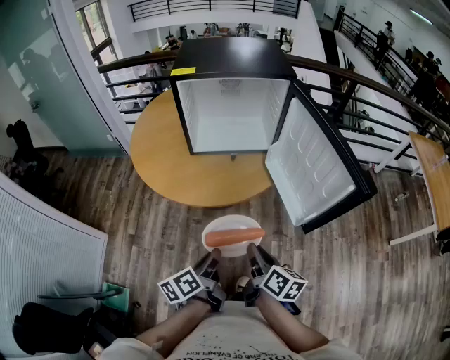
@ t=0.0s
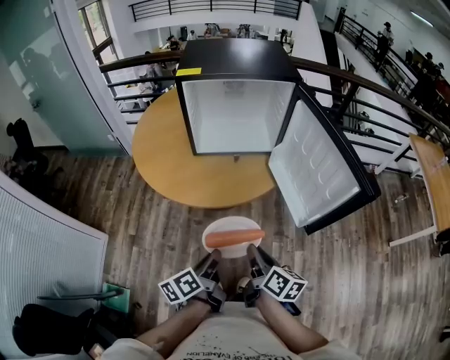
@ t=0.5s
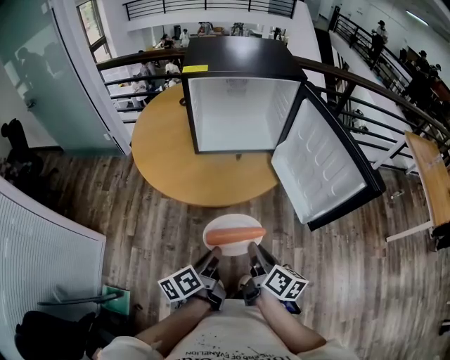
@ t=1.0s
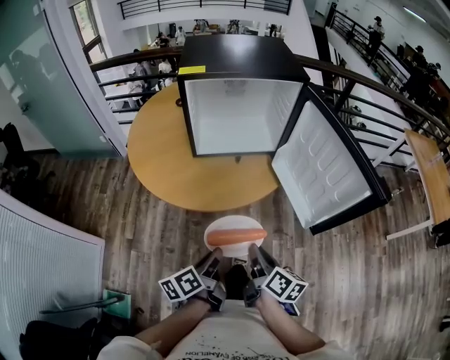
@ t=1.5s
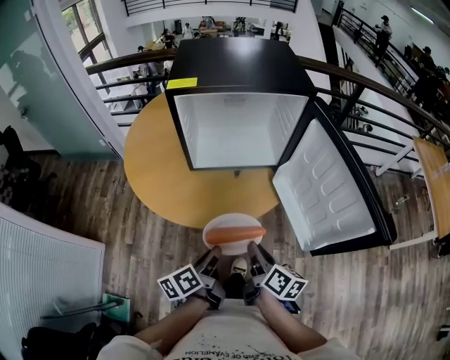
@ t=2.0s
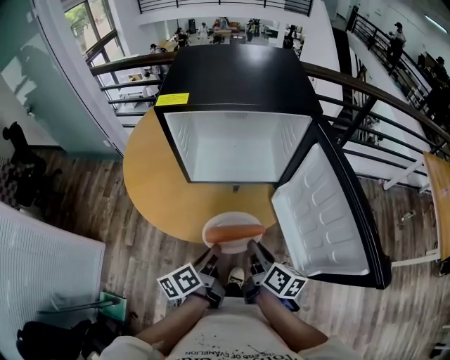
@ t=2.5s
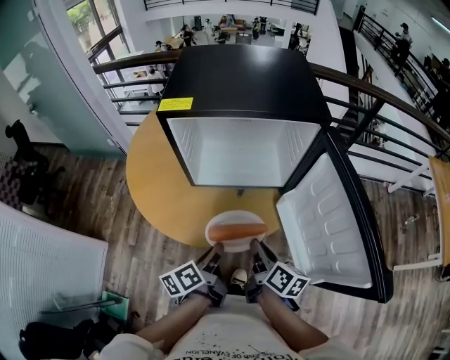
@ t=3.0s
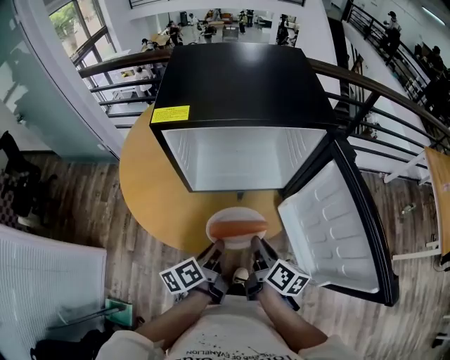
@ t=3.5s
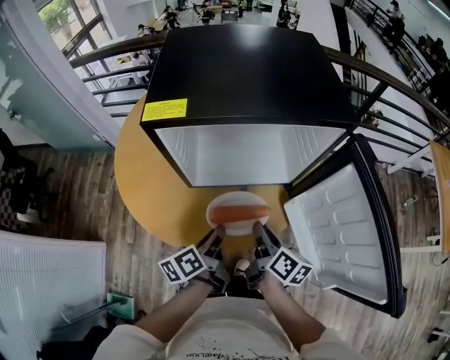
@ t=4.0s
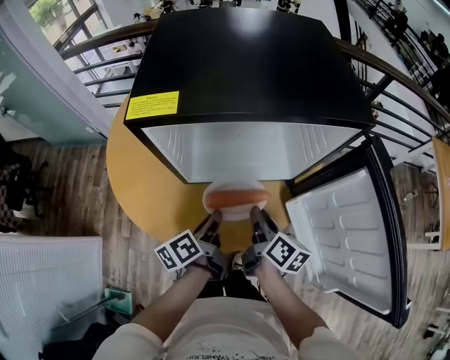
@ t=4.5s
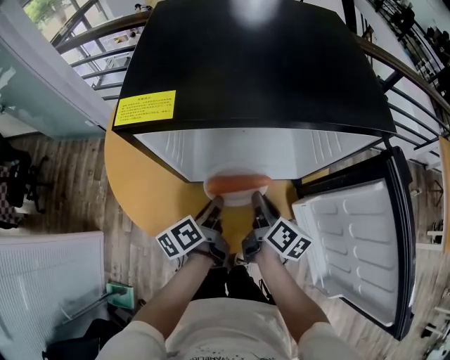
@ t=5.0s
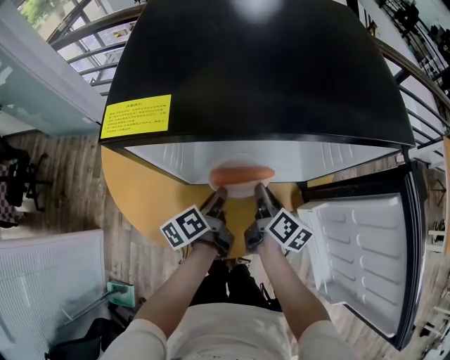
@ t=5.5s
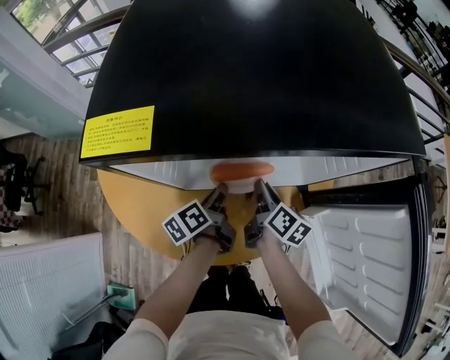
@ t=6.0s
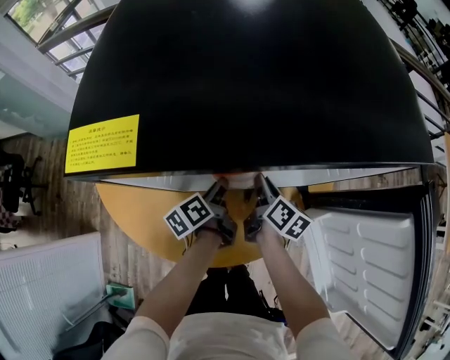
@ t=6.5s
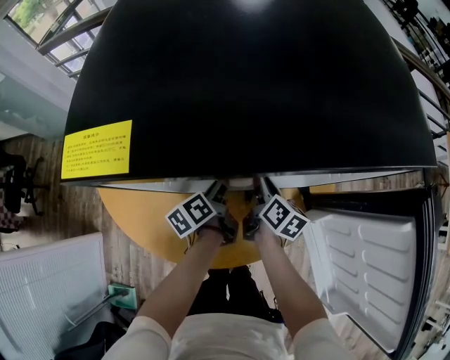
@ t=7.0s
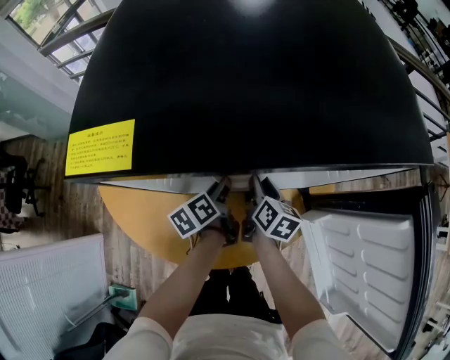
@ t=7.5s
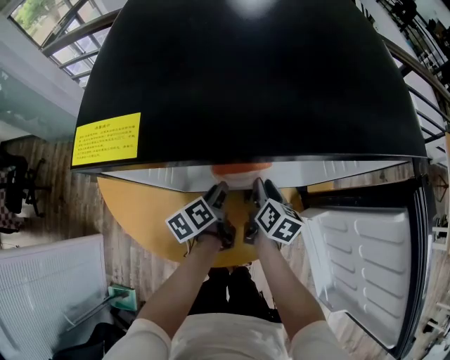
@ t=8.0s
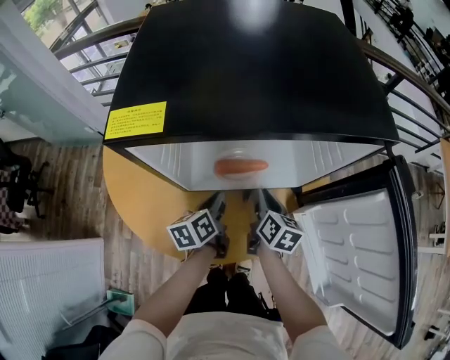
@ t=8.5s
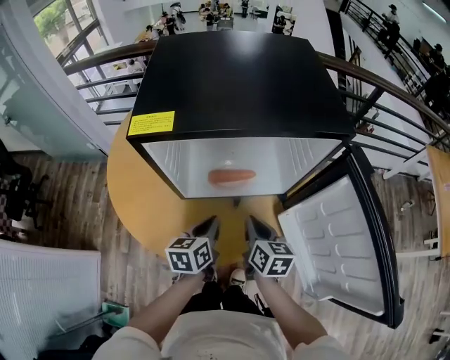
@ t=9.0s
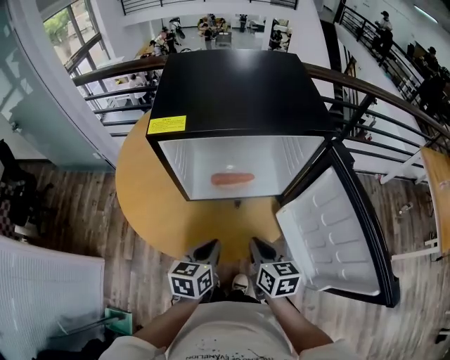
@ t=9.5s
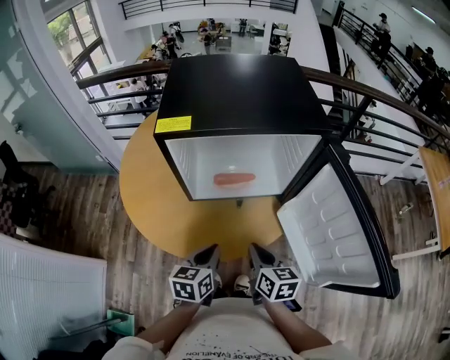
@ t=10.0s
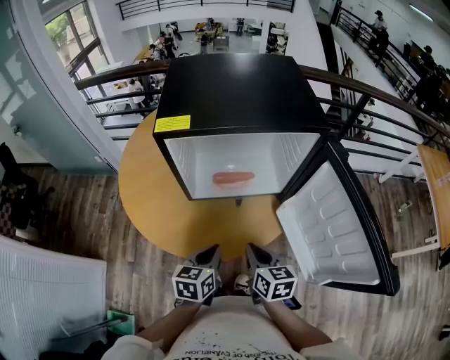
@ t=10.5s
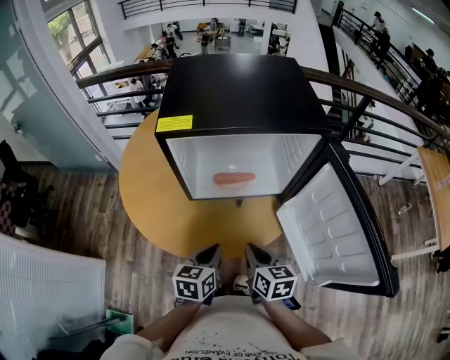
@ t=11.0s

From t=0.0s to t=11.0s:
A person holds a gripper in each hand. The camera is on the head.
From t=0.0s to t=2.0s: The grippers both shift forward by about 10 cm.
From t=2.0s to t=3.5s: Both grippers travel together forward, about 15 cm.
From t=3.5s to t=5.5s: The two grippers go some 20 cm forward and downward.
From t=5.5s to t=7.5s: Both grippers move forward, about 5 cm.
From t=7.5s to t=9.0s: Both grippers travel together backward and upward, some 15 cm. The right gripper closes. The left gripper turns by some 30 degrees, and closes.
From t=9.0s to t=11.0s: Both grippers move backward, roughly 10 cm.

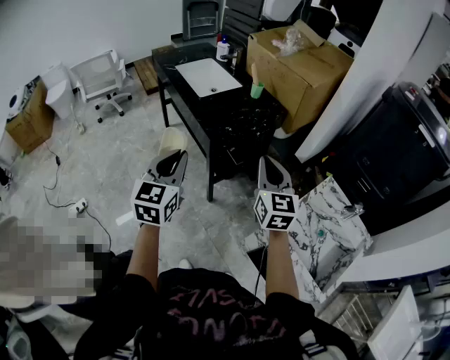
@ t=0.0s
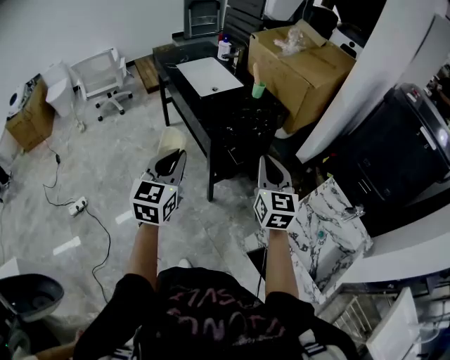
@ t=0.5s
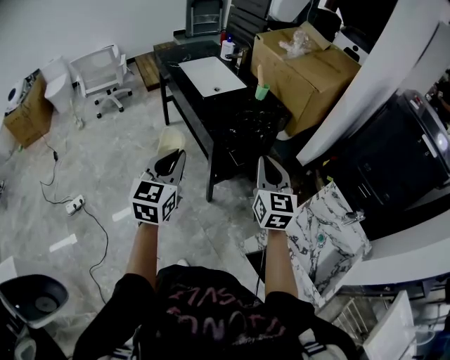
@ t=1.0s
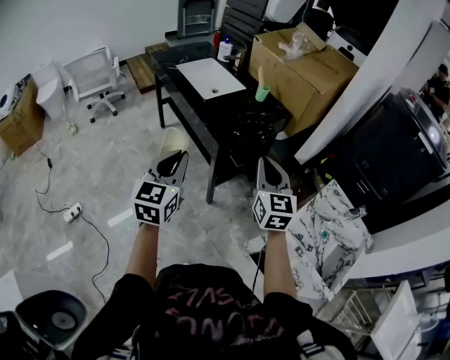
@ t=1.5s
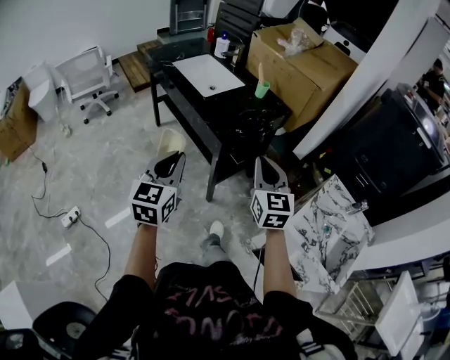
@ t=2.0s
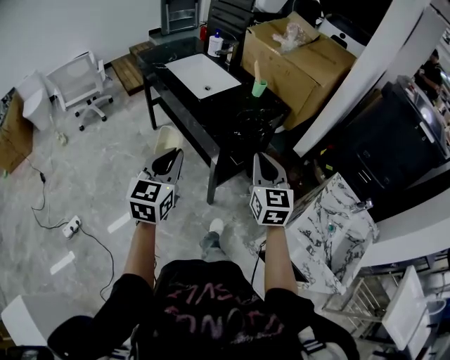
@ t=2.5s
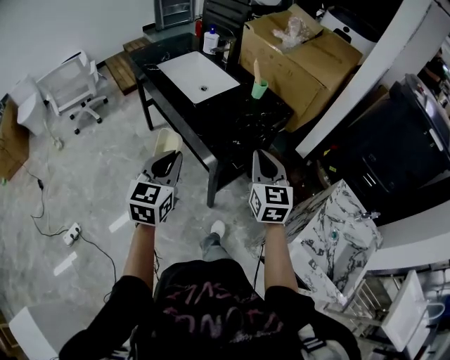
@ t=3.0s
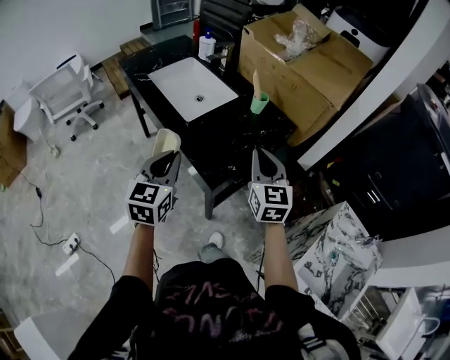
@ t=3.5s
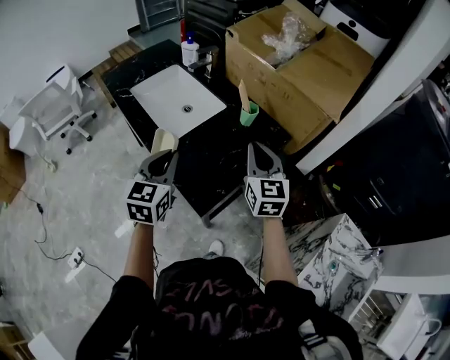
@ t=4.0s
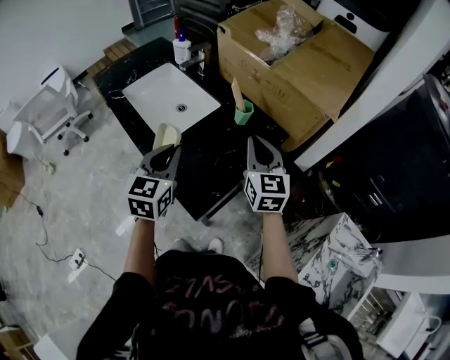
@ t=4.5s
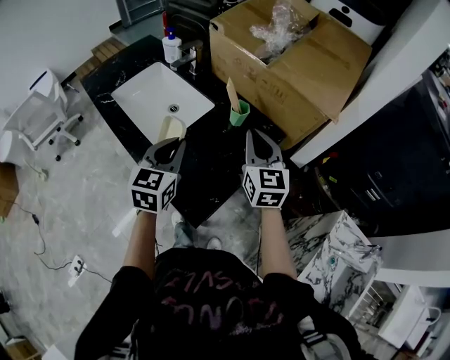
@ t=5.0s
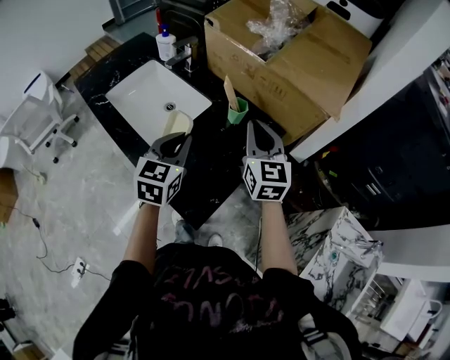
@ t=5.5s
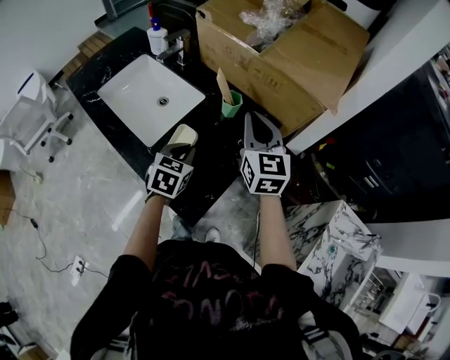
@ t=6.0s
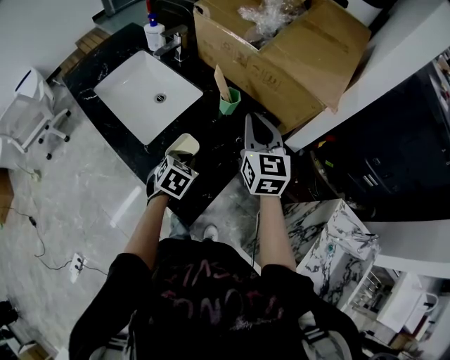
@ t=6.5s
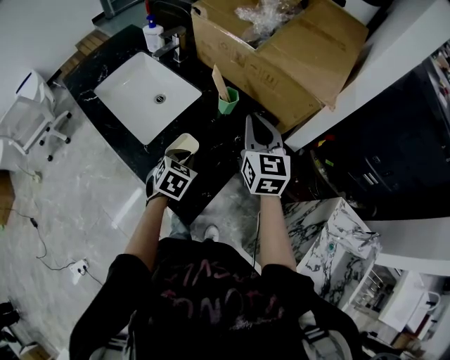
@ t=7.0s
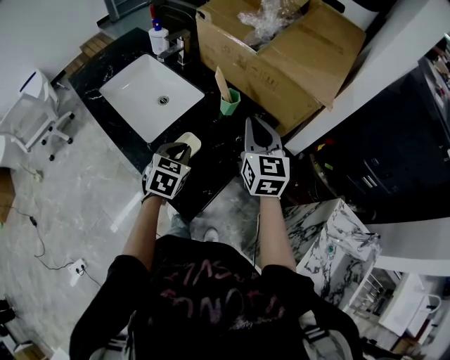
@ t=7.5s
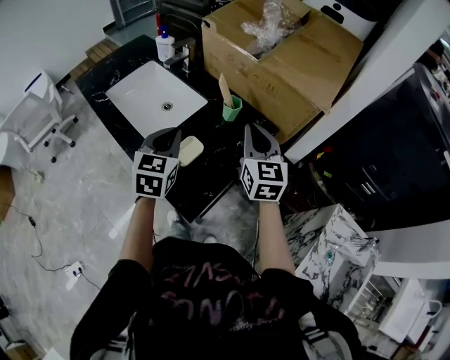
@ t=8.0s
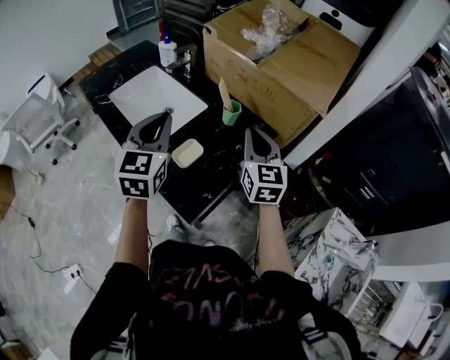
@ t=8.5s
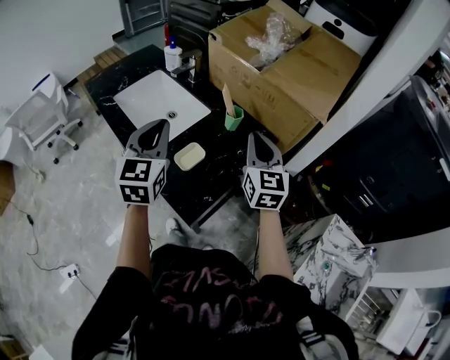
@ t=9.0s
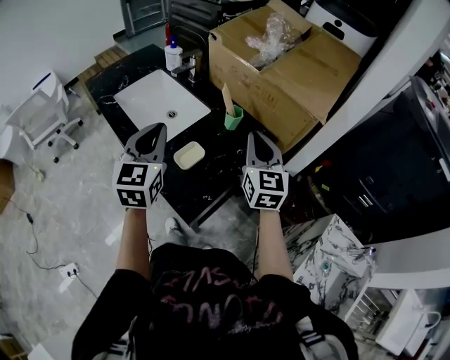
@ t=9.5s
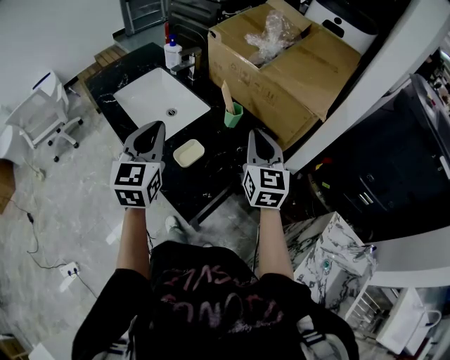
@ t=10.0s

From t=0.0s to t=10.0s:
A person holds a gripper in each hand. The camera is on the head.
From t=0.0s to t=2.0s: Both grippers move to the left, some 10 cm.
From t=2.0s to t=4.0s: The grippers both shift forward by some 40 cm.
From t=4.0s to t=6.0s: The left gripper is displaced downward, forward and to the right by about 20 cm, and turns by approximately 30 degrees, while the right gripper shifts some 10 cm forward.
From t=6.0s to t=8.0s: The left gripper travels upward by some 10 cm, and turns by roughly 20 degrees.
From t=8.0s to t=10.0s: The left gripper travels upward by roughly 10 cm.

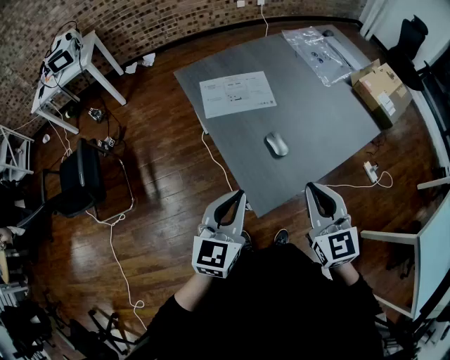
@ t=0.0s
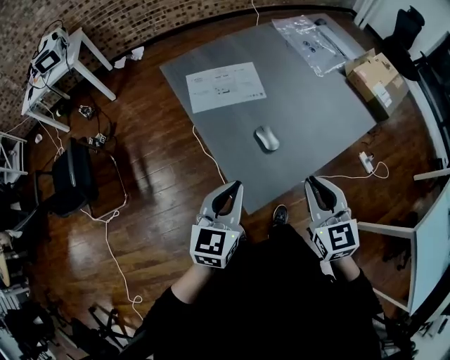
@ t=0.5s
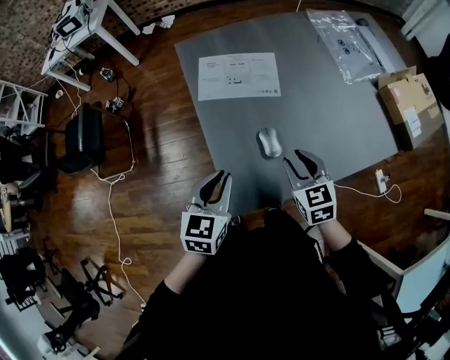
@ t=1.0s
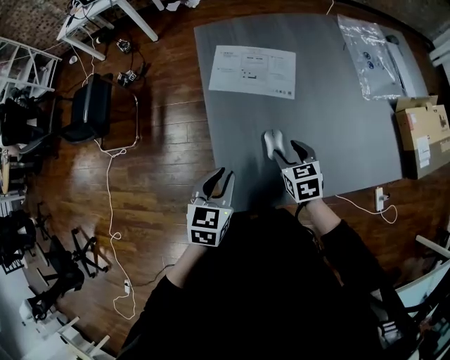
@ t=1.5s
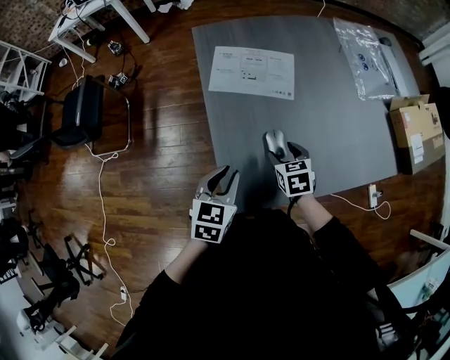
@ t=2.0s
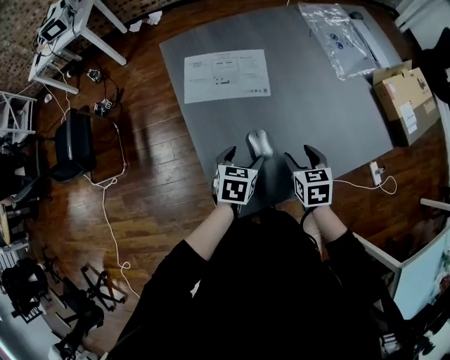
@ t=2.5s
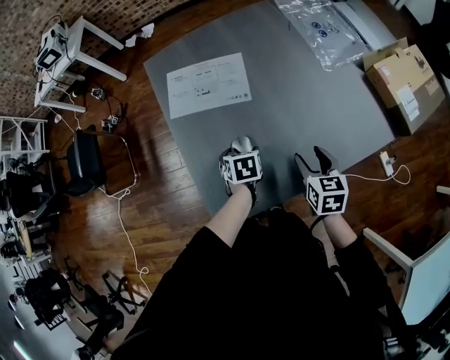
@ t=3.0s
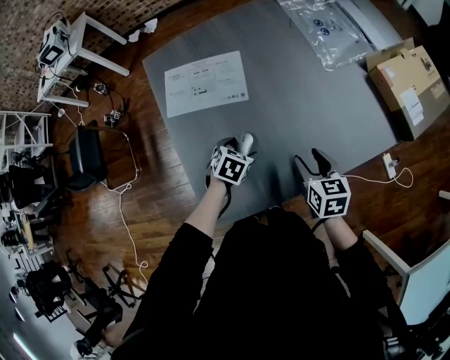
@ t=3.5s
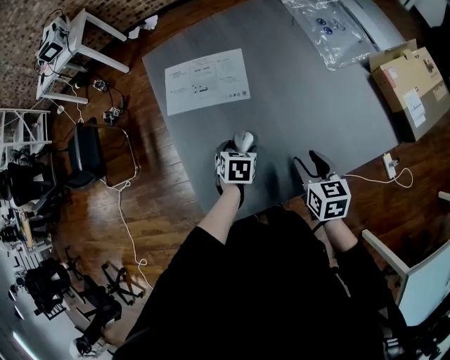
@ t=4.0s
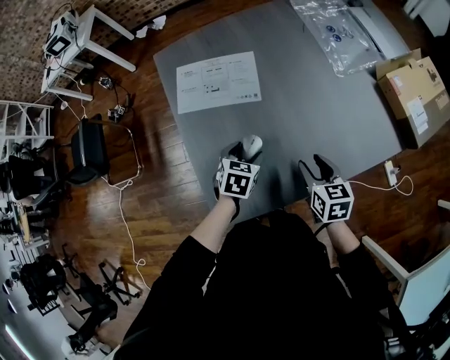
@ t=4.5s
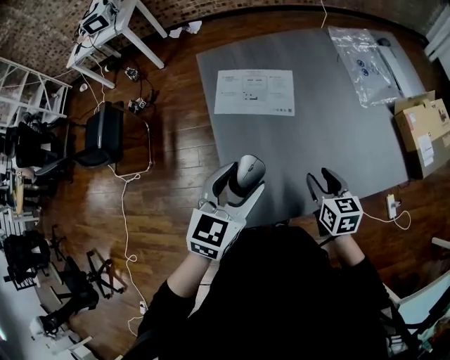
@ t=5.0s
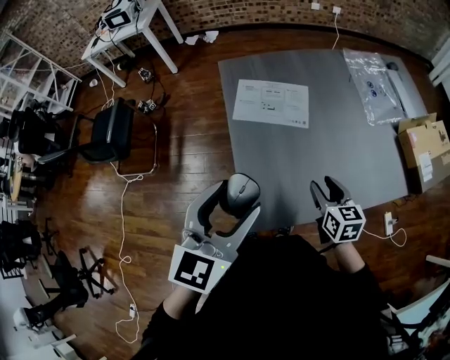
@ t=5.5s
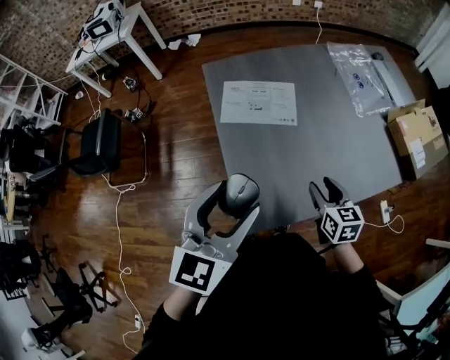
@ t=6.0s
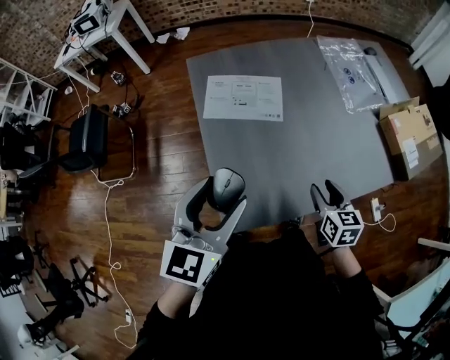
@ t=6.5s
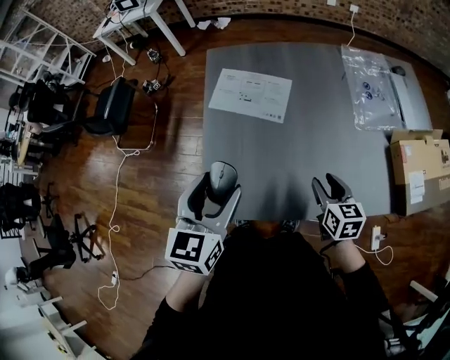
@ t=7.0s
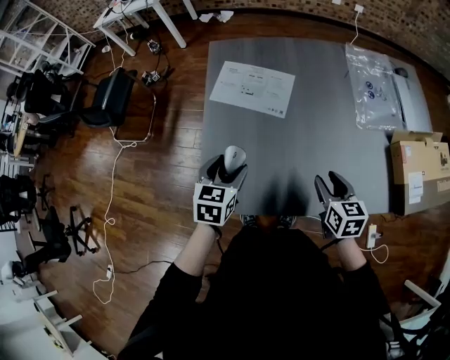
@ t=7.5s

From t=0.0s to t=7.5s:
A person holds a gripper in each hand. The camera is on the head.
From t=0.0s to t=2.0s: The right gripper travels downward by roughly 25 cm, angles its fingers downward, by some 40 degrees, and opens up, while the left gripper travels downward by about 15 cm, and changes its angle by approximately 30 degrees.
From t=2.0s to t=4.0s: The right gripper shifts roughly 20 cm to the right, and rotates some 20 degrees. Meanwhile the left gripper travels downward, to the right and forward by approximately 25 cm, turns by approximately 20 degrees, and opens up.
From t=4.0s to t=5.5s: The left gripper travels upward by approximately 40 cm, and points its fingers some 50 degrees further upward. Meanwhile the right gripper is displaced to the left and upward by roughly 15 cm.
From t=5.5s to t=7.5s: The right gripper travels to the right by approximately 15 cm, while the left gripper moves downward and to the right, roughly 25 cm, and rotates roughly 30 degrees.
